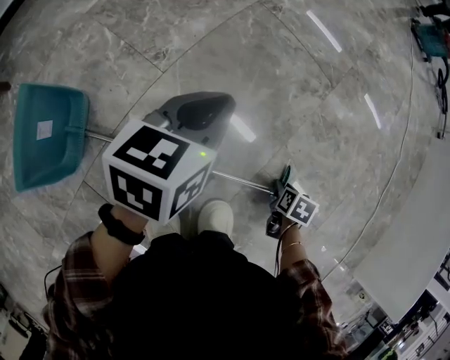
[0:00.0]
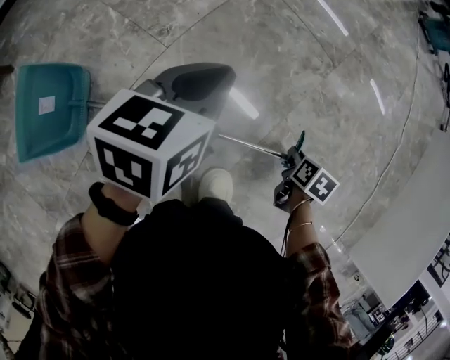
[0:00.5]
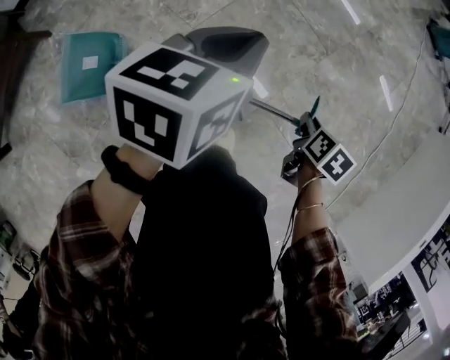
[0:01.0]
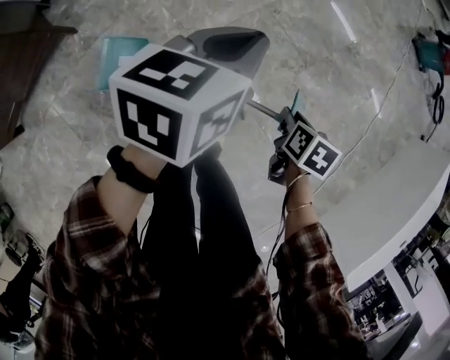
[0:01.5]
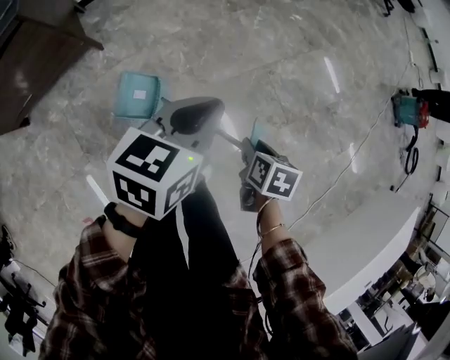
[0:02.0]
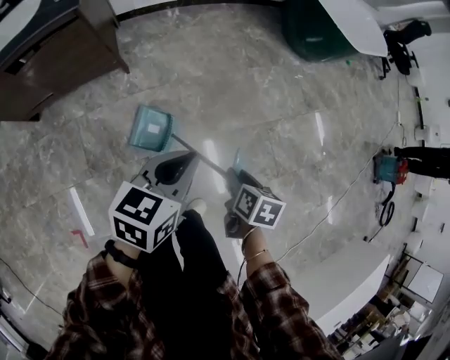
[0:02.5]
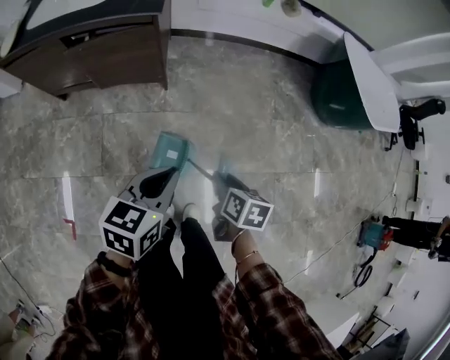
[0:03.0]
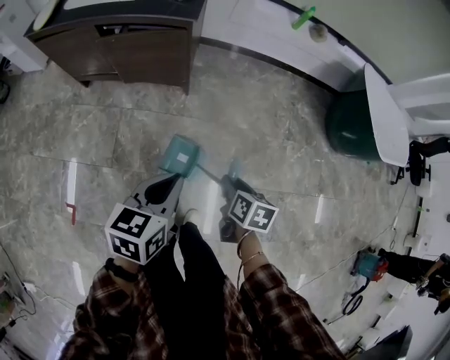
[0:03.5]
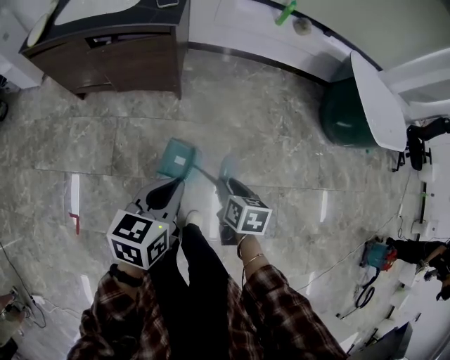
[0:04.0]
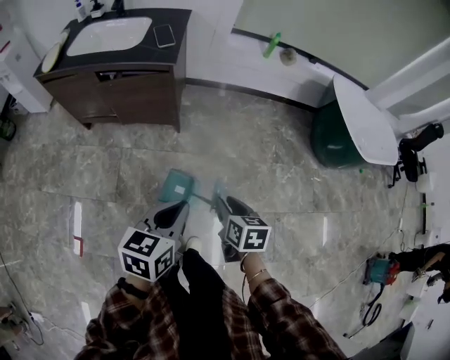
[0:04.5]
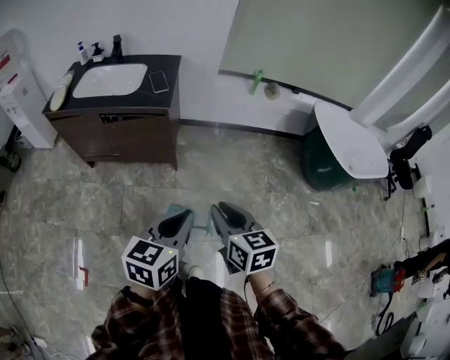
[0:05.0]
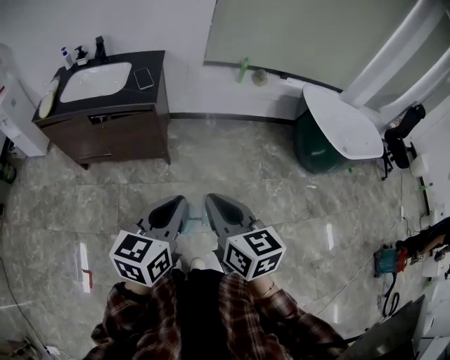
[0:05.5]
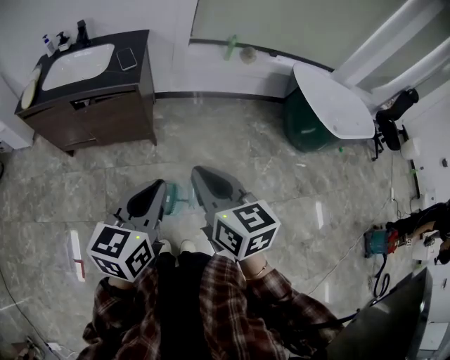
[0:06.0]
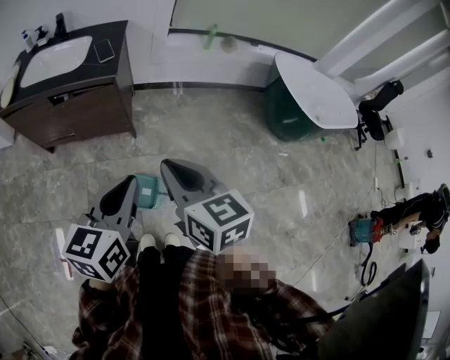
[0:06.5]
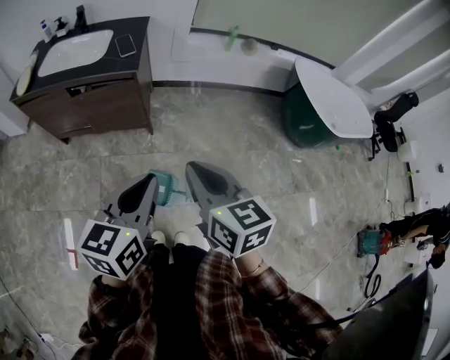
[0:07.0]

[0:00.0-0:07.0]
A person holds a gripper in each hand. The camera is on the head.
0:00.0 to 0:02.0: The two grippers go some 60 cm upward. The left gripper turns by roughly 20 degrees; the right gripper rotates roughly 40 degrees.
0:02.0 to 0:03.5: The right gripper changes place by some 35 cm, and swivels about 30 degrees. Meanwhile the left gripper ends up some 35 cm from where it was, and changes its angle by roughly 40 degrees.
0:03.5 to 0:05.0: The left gripper heads upward, covering approximately 15 cm. Meanwhile the right gripper travels upward by roughly 25 cm, and turns by about 40 degrees.
0:05.0 to 0:07.0: The right gripper is displaced upward by approximately 5 cm.

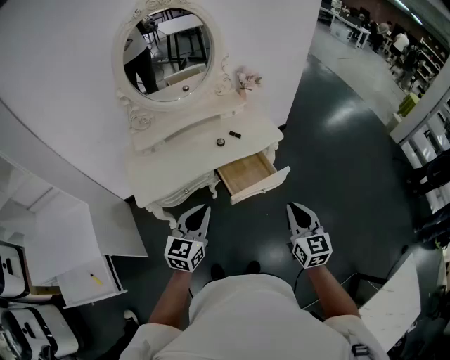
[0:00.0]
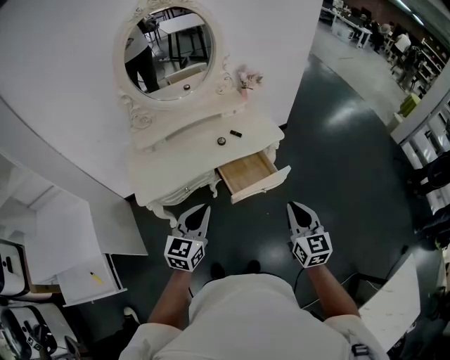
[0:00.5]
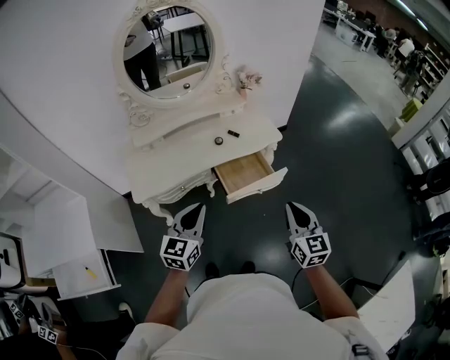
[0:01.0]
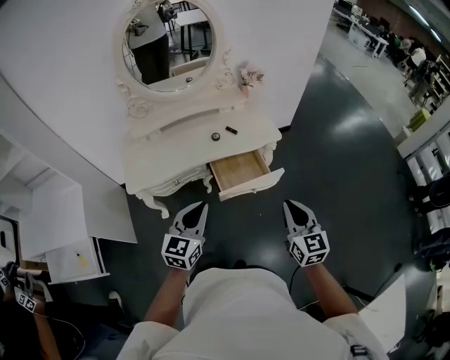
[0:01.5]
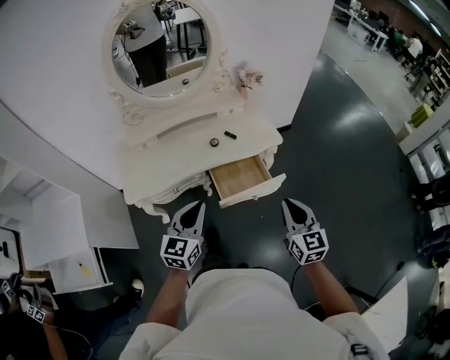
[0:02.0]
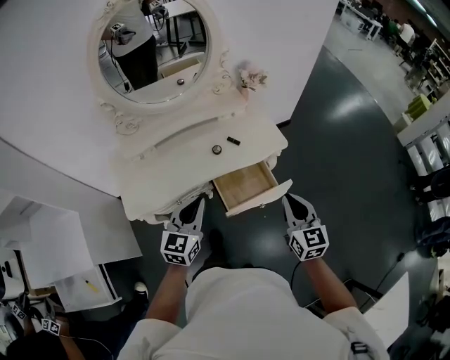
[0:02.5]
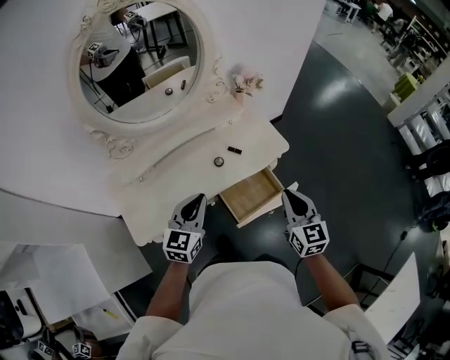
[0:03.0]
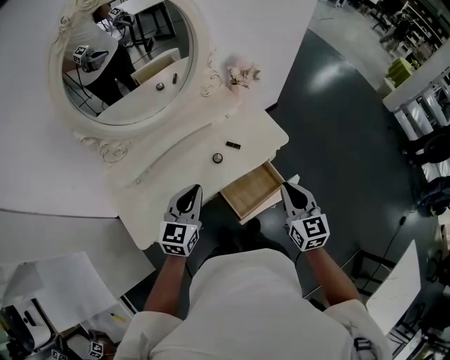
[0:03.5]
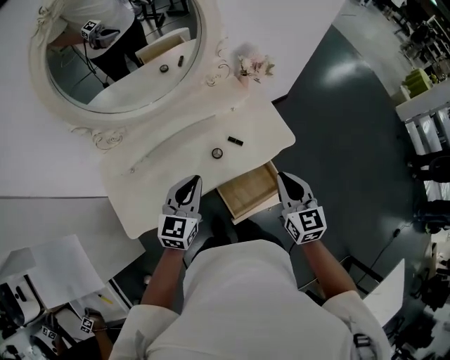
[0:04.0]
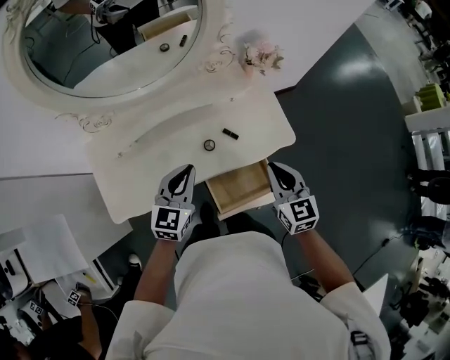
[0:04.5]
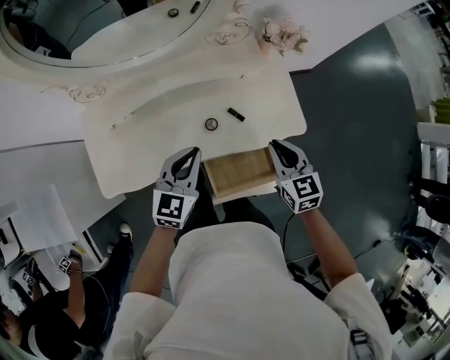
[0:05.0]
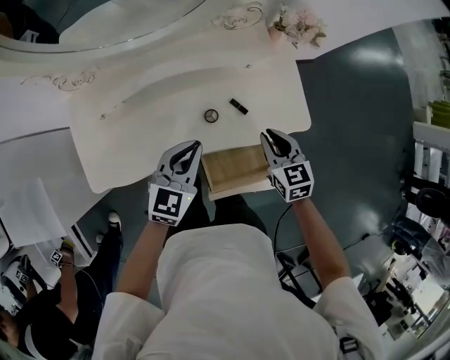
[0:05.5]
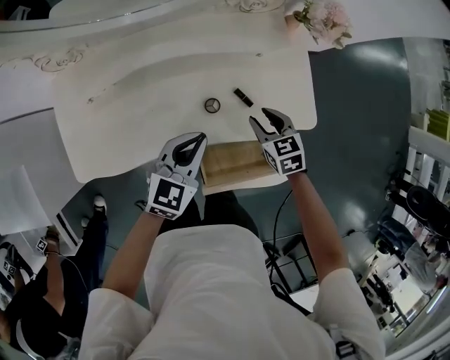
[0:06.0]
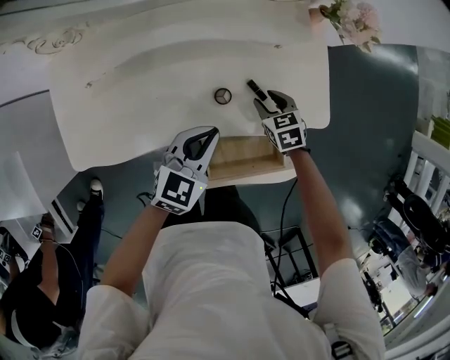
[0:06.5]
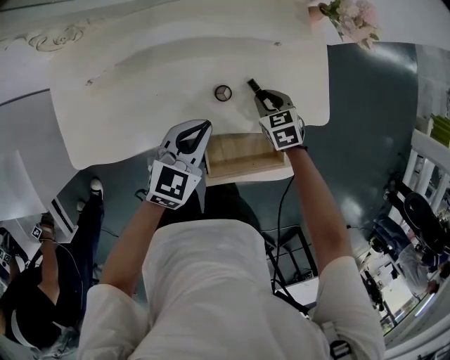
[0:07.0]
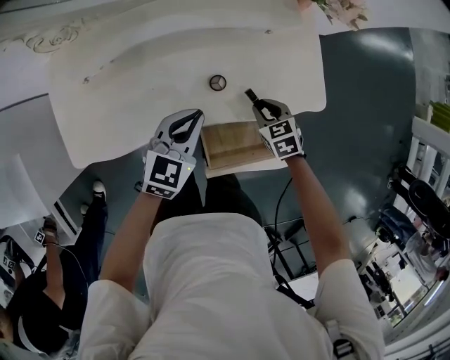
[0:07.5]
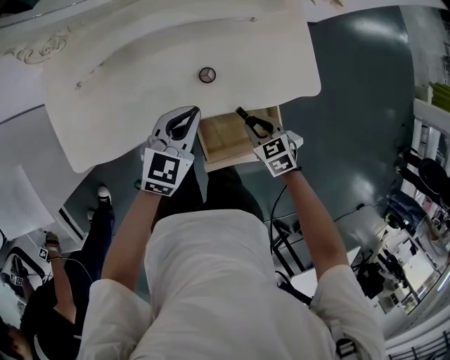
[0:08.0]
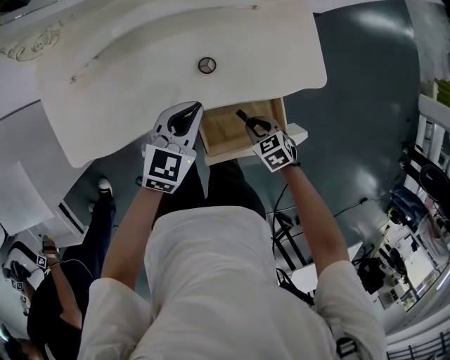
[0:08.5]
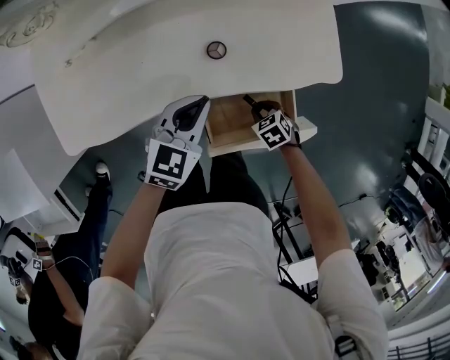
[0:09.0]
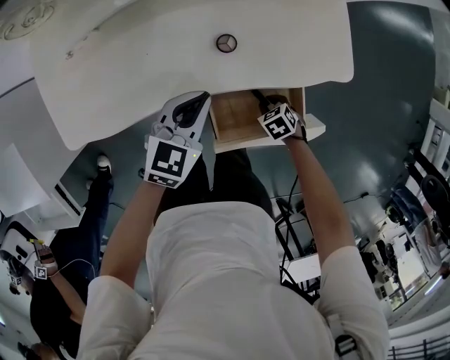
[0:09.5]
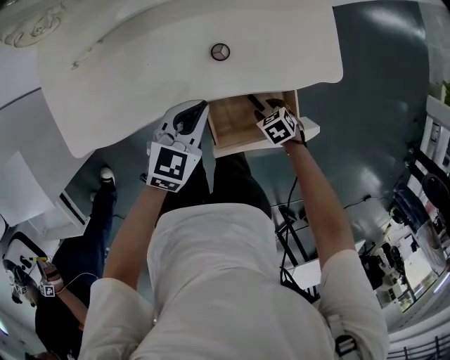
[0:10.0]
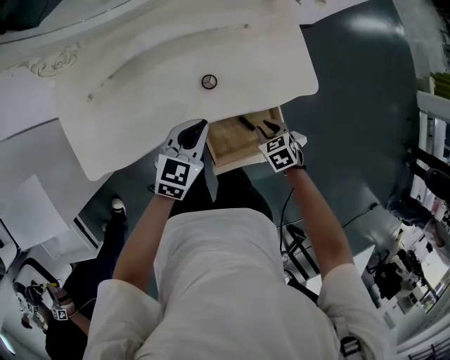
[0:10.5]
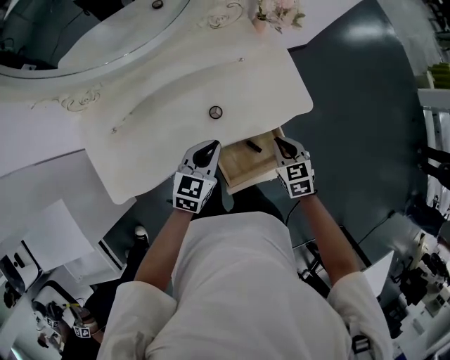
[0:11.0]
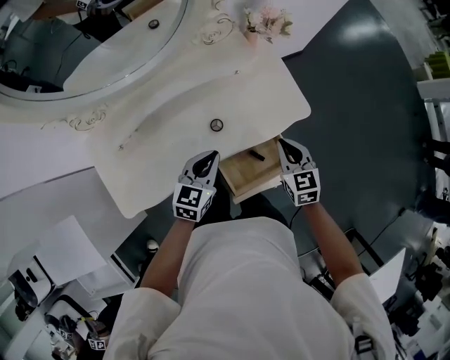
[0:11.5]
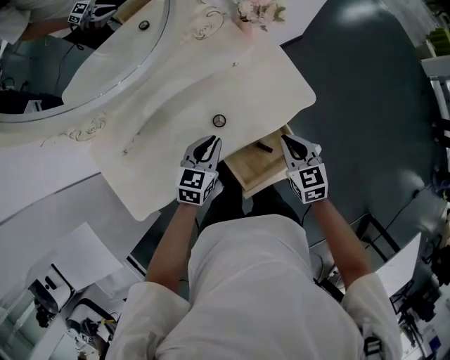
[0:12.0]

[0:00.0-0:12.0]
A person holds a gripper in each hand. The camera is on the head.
0:00.0 to 0:02.0: The two grippers go about 5 cm forward.
0:02.0 to 0:04.0: The left gripper is displaced forward by about 25 cm. The right gripper heads forward and to the left, covering about 25 cm.
0:04.0 to 0:06.0: The right gripper heads downward and forward, covering approximately 30 cm, turns by roughly 40 degrees, and opens. Meanwhile the left gripper travels downward by some 15 cm.
0:06.0 to 0:08.0: The right gripper moves backward and downward, some 15 cm.
0:08.0 to 0:10.0: The left gripper shifts by some 5 cm. Meanwhile the right gripper goes some 15 cm downward, changes its angle by approximately 20 degrees, and opens.
0:10.0 to 0:12.0: The left gripper moves some 10 cm; the right gripper travels upward by approximately 25 cm, angles its fingers upward, by roughly 40 degrees, and closes up.

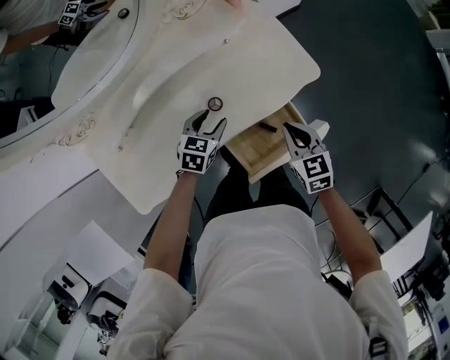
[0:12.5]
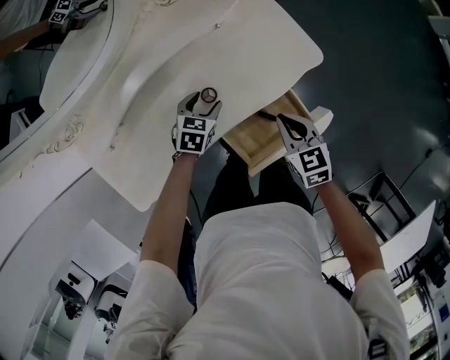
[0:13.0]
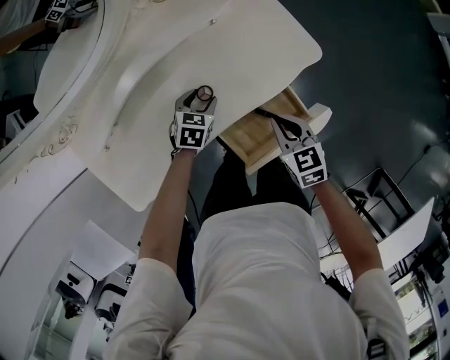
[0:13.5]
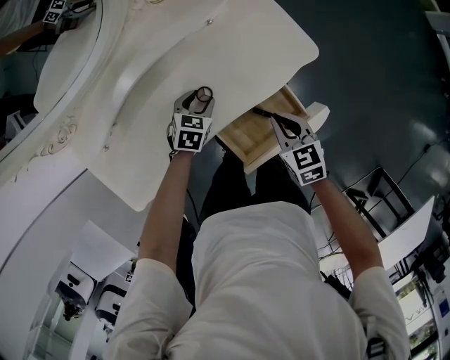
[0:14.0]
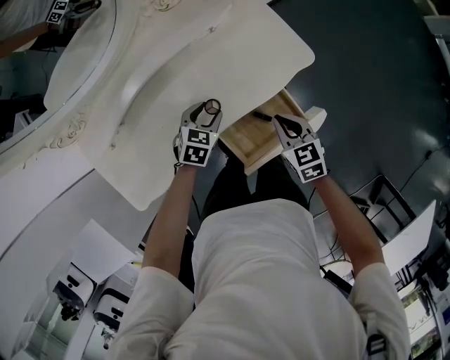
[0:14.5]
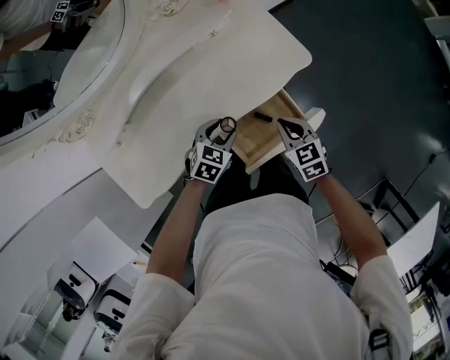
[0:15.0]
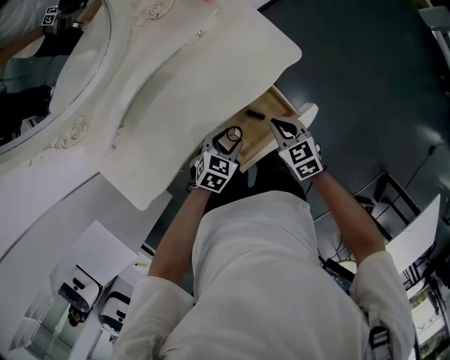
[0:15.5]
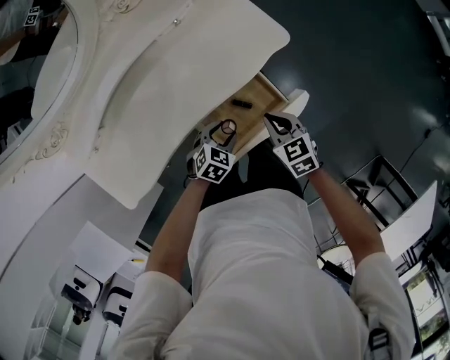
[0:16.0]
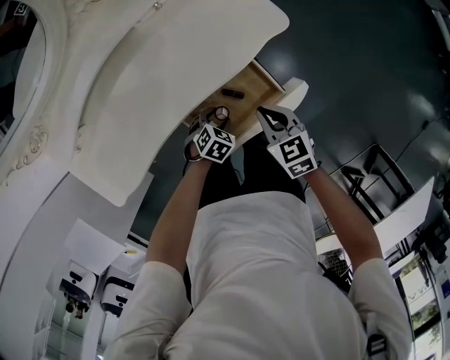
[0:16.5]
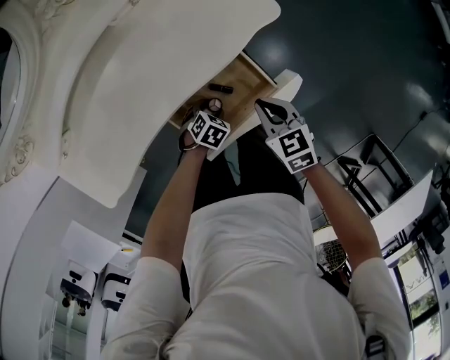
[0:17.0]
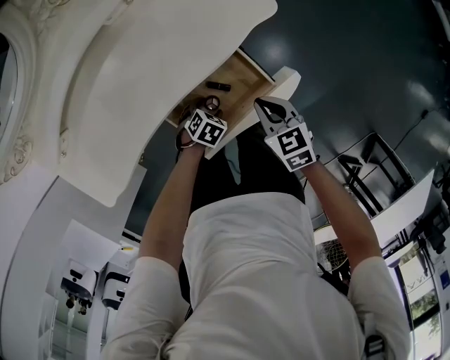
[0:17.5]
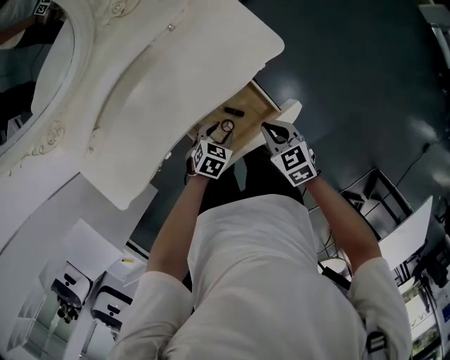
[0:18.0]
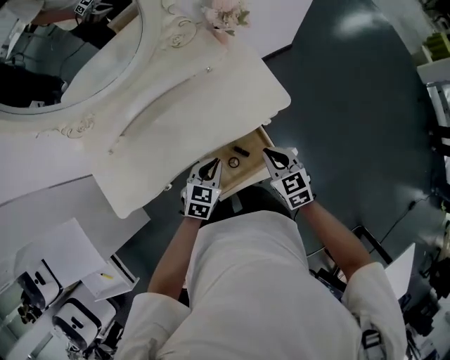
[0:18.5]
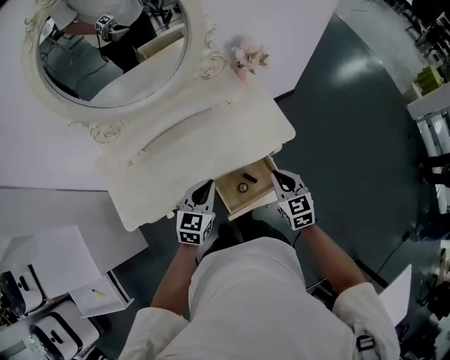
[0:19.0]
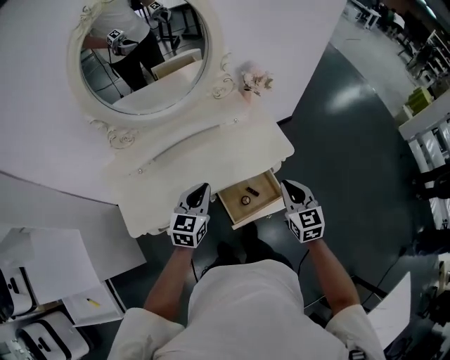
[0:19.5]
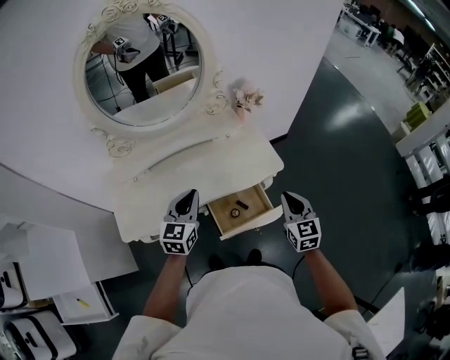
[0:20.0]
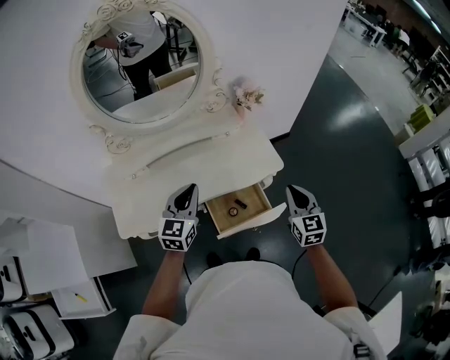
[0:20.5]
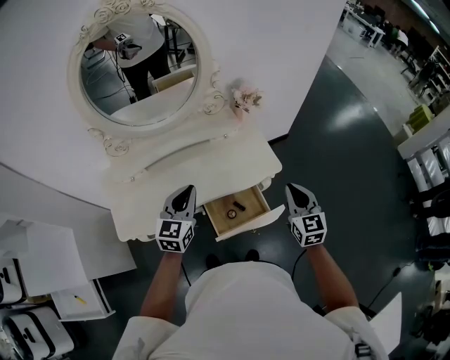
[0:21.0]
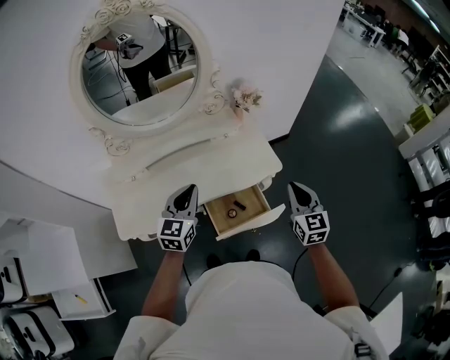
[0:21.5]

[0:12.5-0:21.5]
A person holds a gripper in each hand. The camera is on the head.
0:12.5 to 0:14.5: The left gripper travels downward and back again, roughly 10 cm each way.
0:14.5 to 0:17.0: The right gripper ends up about 10 cm from where it was. Meanwhile the left gripper moves approximately 25 cm, and changes its angle by approximately 30 degrees.
0:17.0 to 0:19.5: The left gripper travels upward by some 40 cm, angles its fingers upward, by roughly 50 degrees, and closes its fingers. The right gripper travels upward by roughly 30 cm, and turns by roughly 30 degrees.
0:19.5 to 0:21.5: The right gripper is displaced to the right by approximately 10 cm. Meanwhile the left gripper heads upward, covering some 5 cm.
